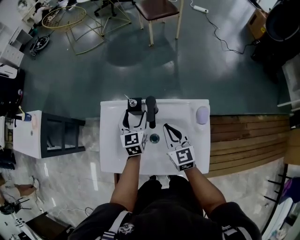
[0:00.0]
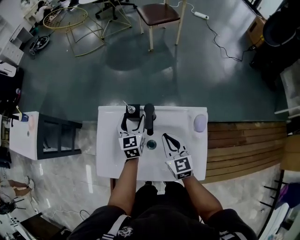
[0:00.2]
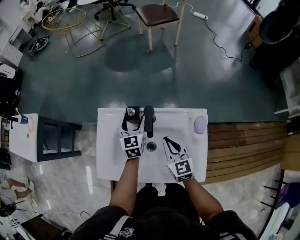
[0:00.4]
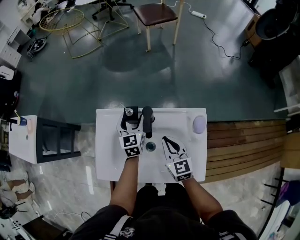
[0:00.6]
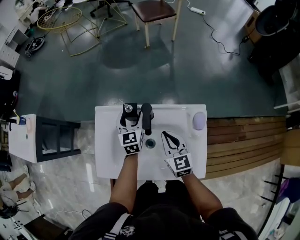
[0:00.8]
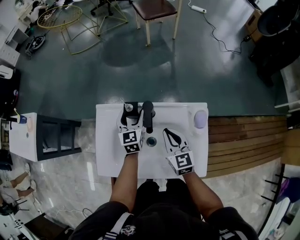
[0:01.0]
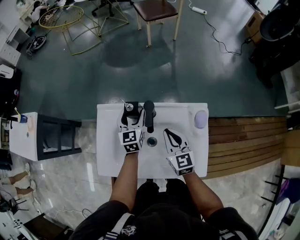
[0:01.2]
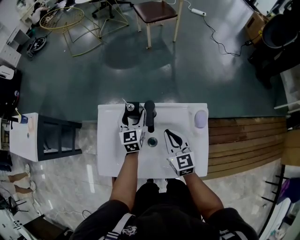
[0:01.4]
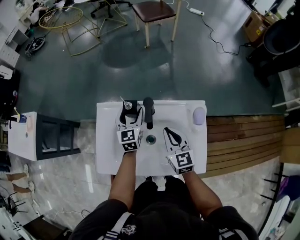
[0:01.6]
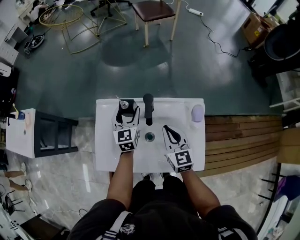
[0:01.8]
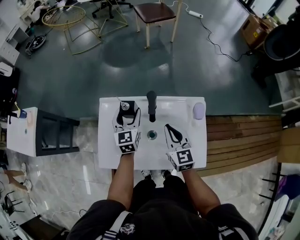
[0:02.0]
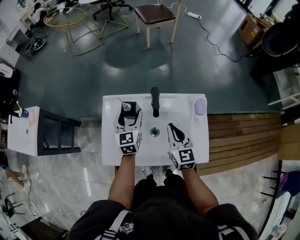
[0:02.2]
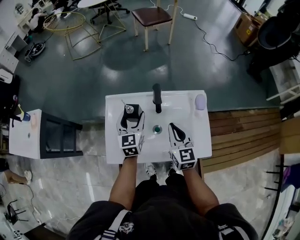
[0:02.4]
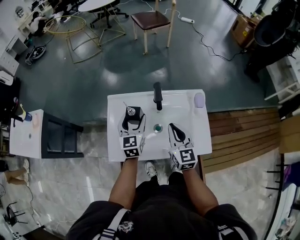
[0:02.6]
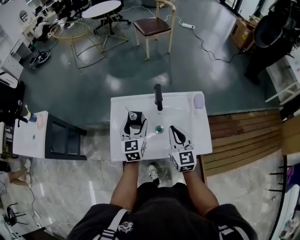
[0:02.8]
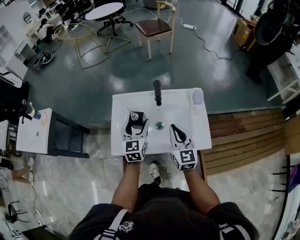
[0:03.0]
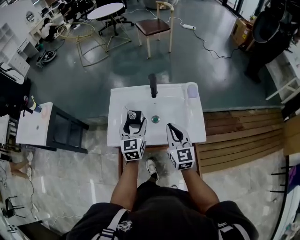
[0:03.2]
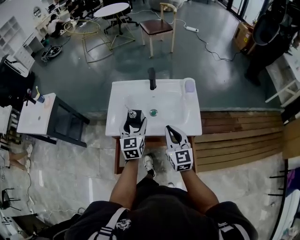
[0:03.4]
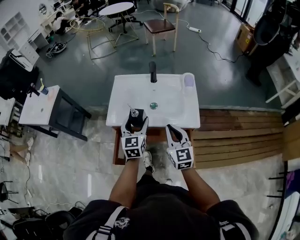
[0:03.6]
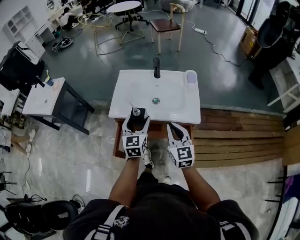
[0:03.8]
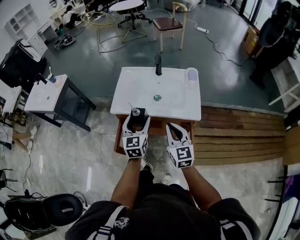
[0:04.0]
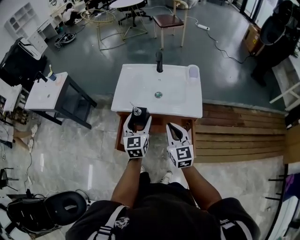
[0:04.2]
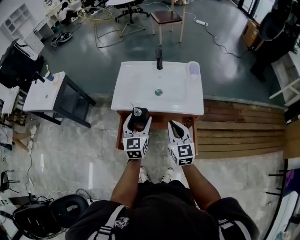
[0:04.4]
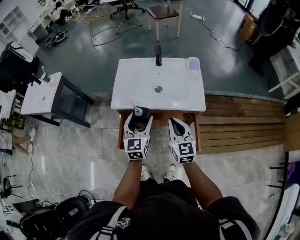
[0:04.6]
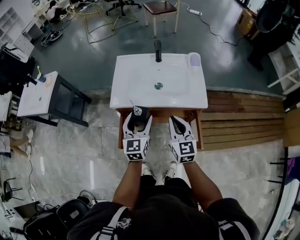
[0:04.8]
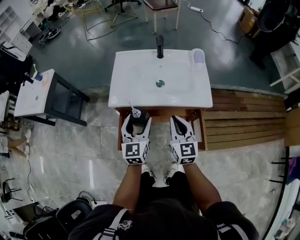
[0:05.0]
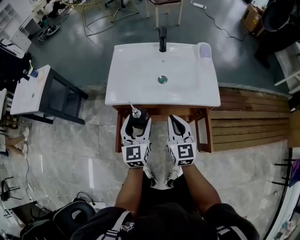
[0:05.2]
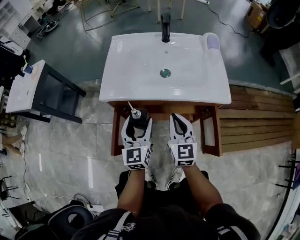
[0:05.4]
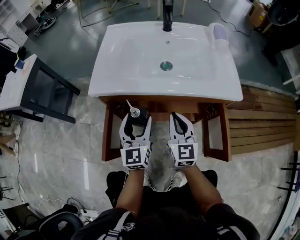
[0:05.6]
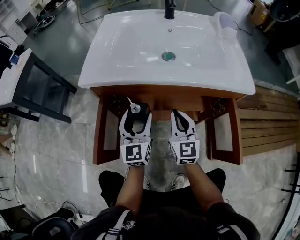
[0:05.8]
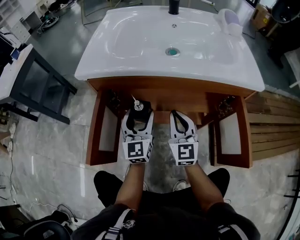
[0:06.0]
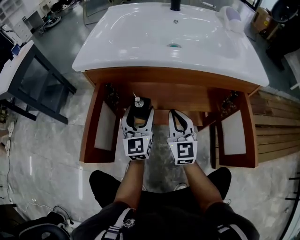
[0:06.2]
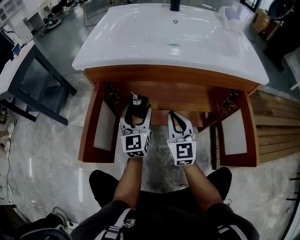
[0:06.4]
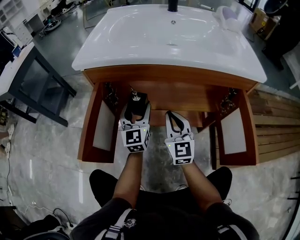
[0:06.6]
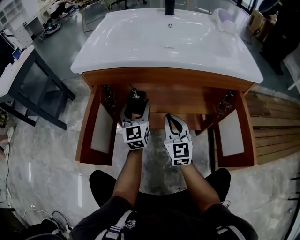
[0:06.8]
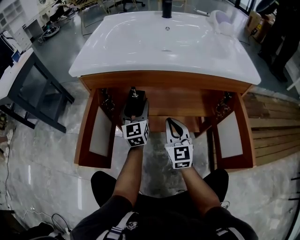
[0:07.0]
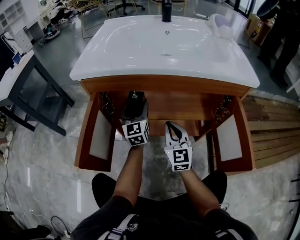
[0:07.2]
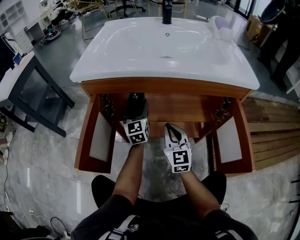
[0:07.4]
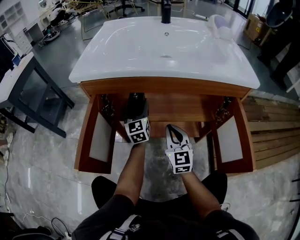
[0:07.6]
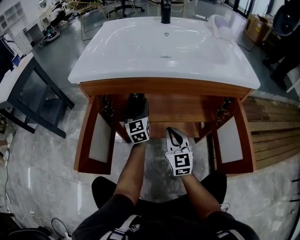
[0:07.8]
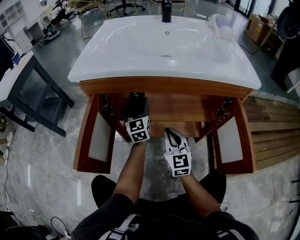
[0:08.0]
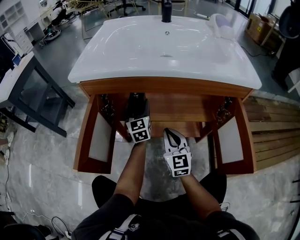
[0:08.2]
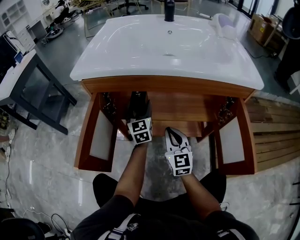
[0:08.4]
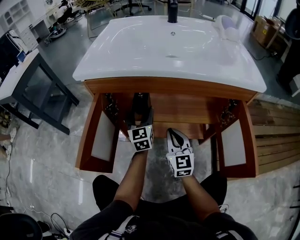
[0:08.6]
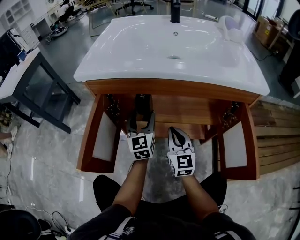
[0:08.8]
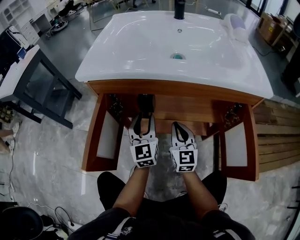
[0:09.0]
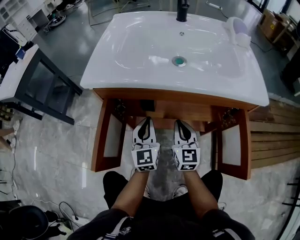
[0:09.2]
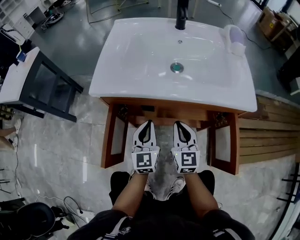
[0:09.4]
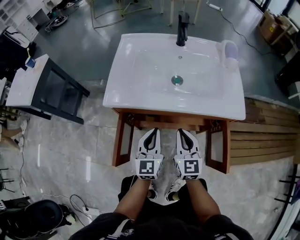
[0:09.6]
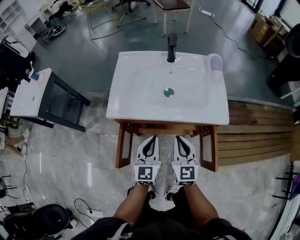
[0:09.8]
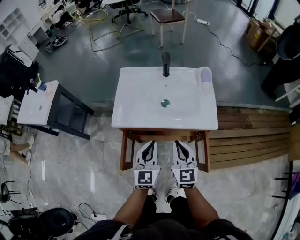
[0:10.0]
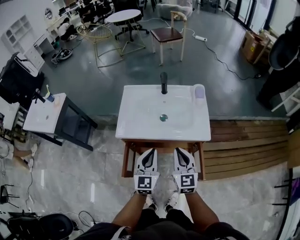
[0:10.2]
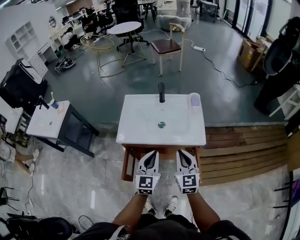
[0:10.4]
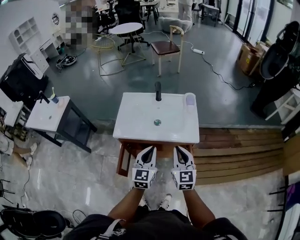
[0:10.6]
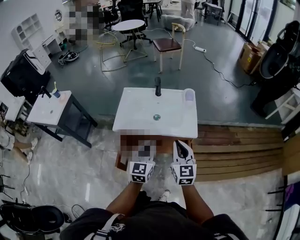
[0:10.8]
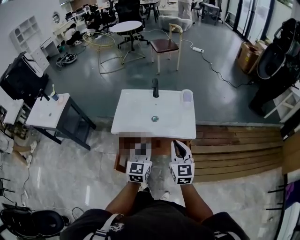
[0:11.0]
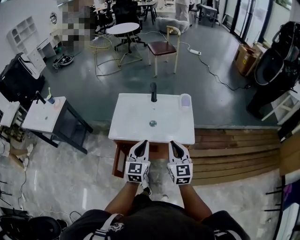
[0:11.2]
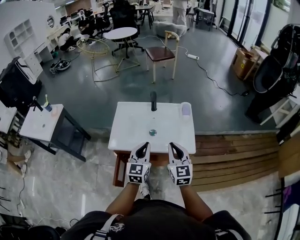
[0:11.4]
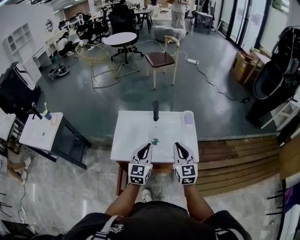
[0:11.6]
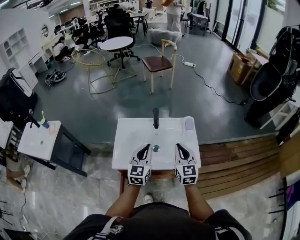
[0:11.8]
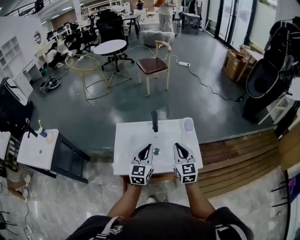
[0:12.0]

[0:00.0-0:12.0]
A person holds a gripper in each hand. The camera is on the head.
0:00.0 to 0:01.6: There are only small adjustments of the grippers.
0:01.6 to 0:03.0: The right gripper travels backward and upward by some 15 cm, while the left gripper heads backward, covering about 20 cm.
0:03.0 to 0:04.4: Both grippers move backward, roughly 25 cm.
0:04.4 to 0:06.0: The grippers both shift downward by about 40 cm.
0:06.0 to 0:07.6: The right gripper heads downward, covering approximately 10 cm; the left gripper moves forward and downward, approximately 15 cm.
0:07.6 to 0:09.0: The left gripper is displaced backward by about 10 cm, and closes.
0:09.0 to 0:10.4: The grippers both shift upward by approximately 50 cm. The left gripper closes.
0:10.4 to 0:12.0: The grippers both shift forward by approximately 20 cm.

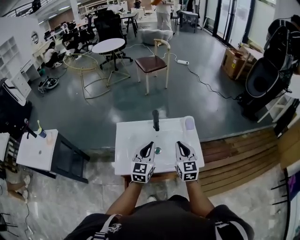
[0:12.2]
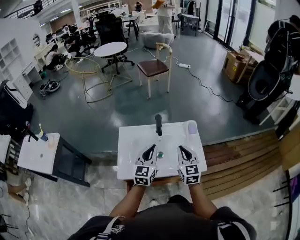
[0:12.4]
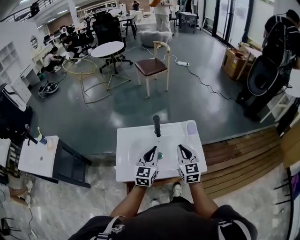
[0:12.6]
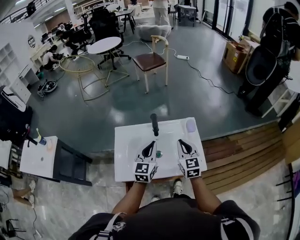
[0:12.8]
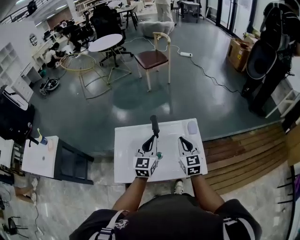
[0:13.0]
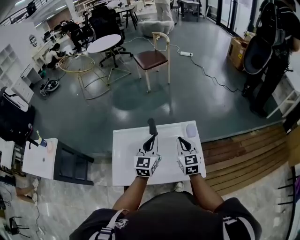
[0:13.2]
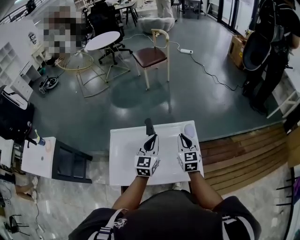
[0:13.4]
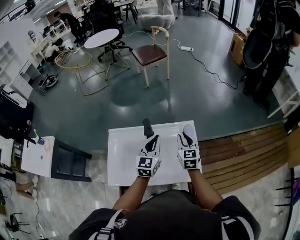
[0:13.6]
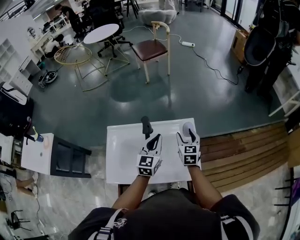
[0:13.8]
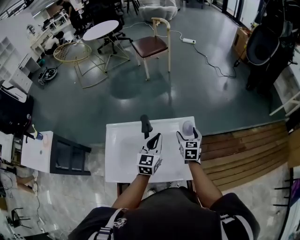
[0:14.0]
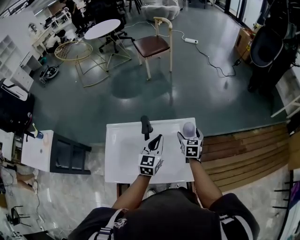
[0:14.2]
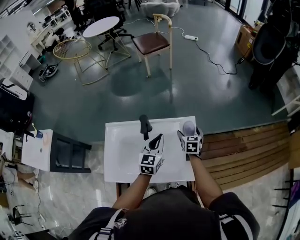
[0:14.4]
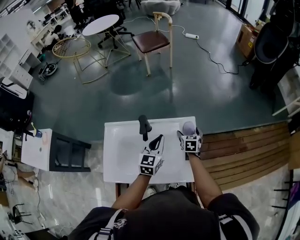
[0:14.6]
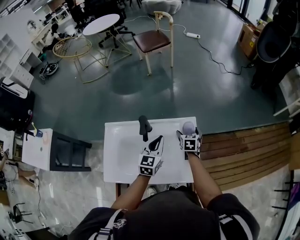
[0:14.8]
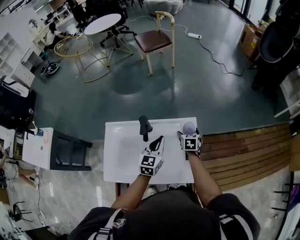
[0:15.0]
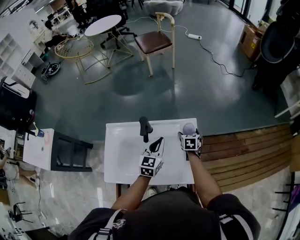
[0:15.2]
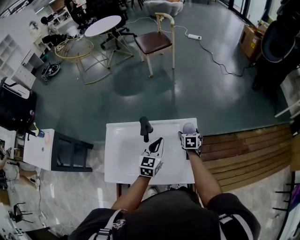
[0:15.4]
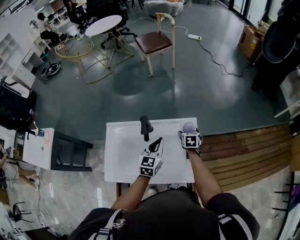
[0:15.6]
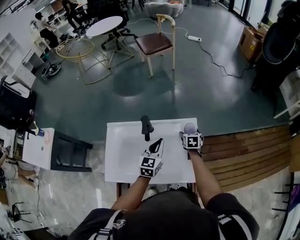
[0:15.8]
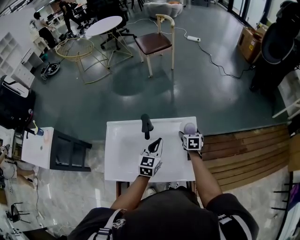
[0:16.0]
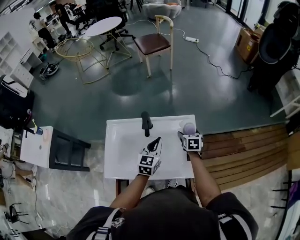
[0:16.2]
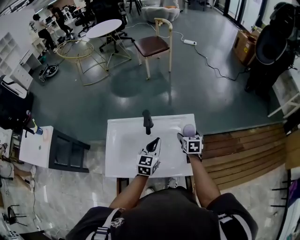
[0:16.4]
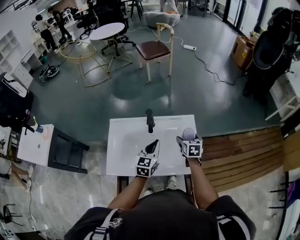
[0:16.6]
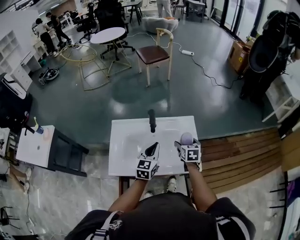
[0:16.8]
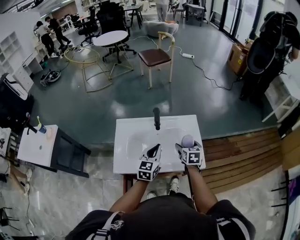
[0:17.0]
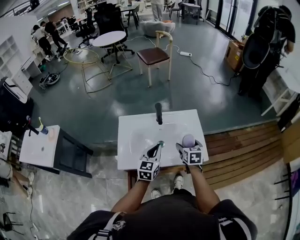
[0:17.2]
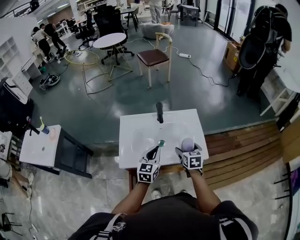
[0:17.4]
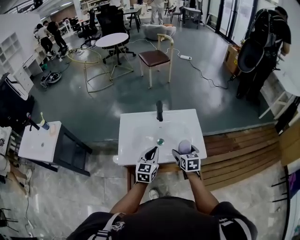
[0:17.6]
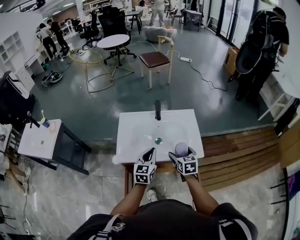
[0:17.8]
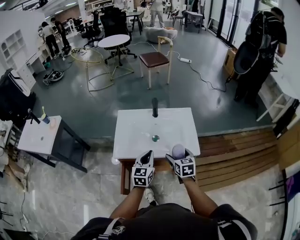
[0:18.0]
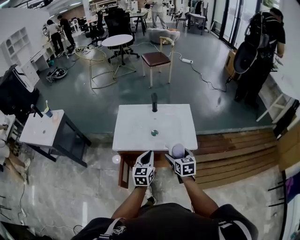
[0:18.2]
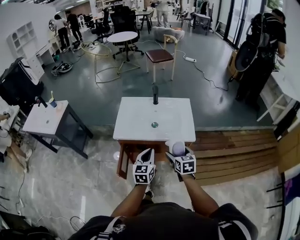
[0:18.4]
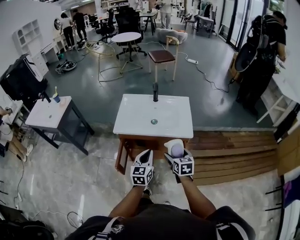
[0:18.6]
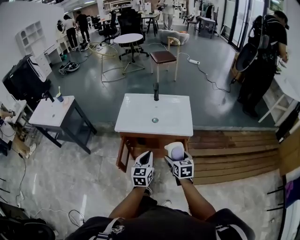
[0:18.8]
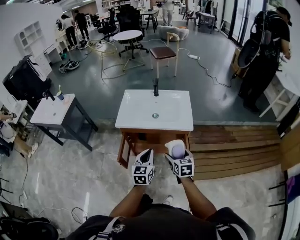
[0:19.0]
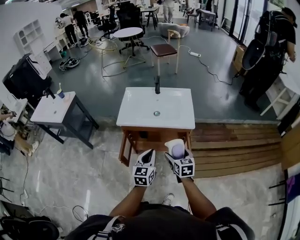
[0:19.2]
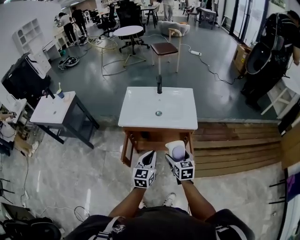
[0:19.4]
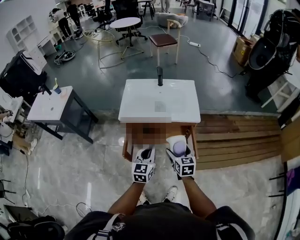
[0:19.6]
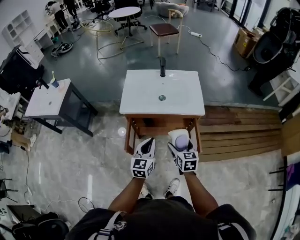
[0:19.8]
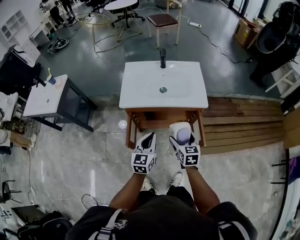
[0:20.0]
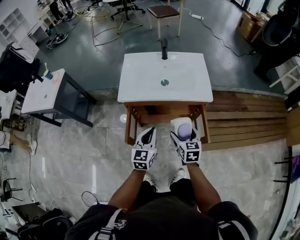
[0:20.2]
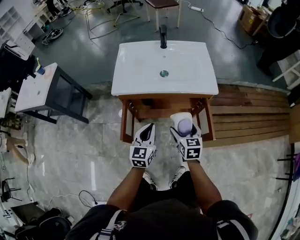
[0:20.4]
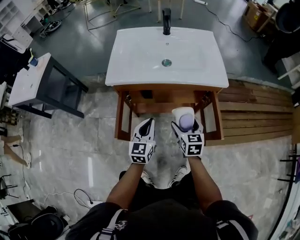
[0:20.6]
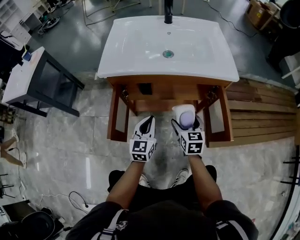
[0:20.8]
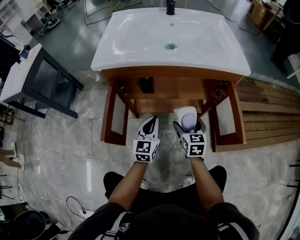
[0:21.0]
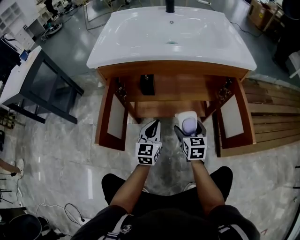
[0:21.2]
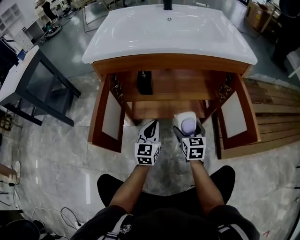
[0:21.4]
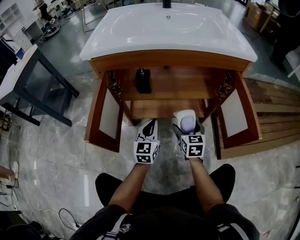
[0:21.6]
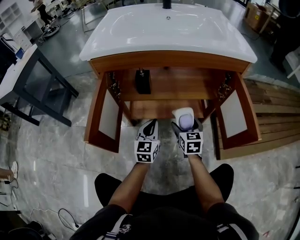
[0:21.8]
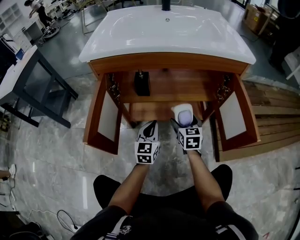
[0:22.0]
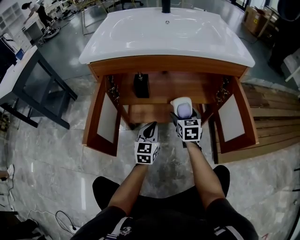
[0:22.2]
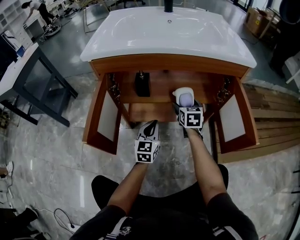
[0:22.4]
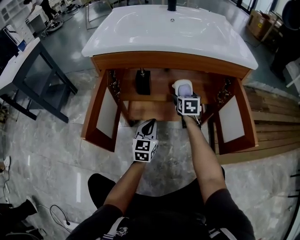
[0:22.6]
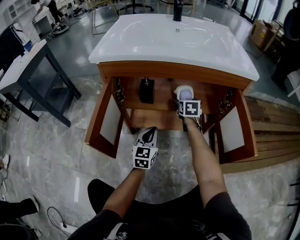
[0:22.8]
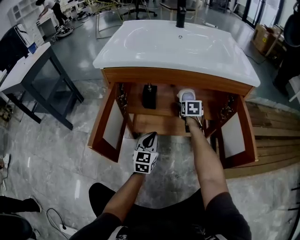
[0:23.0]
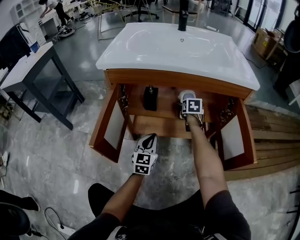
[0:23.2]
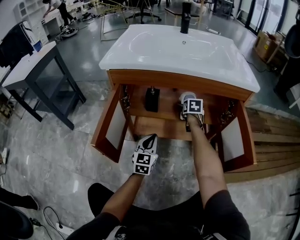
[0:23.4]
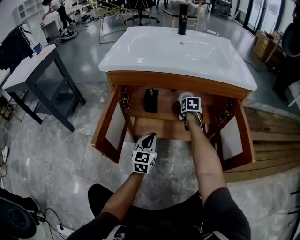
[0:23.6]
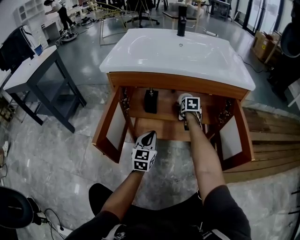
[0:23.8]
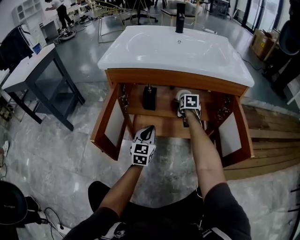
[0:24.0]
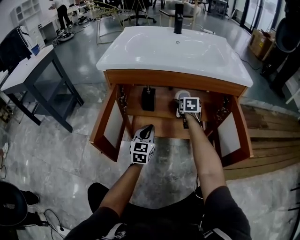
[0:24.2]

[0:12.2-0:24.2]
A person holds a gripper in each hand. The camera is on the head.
0:12.2 to 0:13.8: The right gripper goes approximately 25 cm forward, downward and to the right, and opens. The left gripper is displaced forward and to the right by some 20 cm.
0:13.8 to 0:15.2: The right gripper is displaced downward and forward by roughly 15 cm, rotates approximately 20 degrees, and opens up; the left gripper is displaced downward by approximately 5 cm.
0:15.2 to 0:16.6: The left gripper heads backward, covering some 10 cm. Meanwhile the right gripper moves backward and upward, about 15 cm.
0:16.6 to 0:18.2: Both grippers travel together backward, roughly 30 cm.
0:18.2 to 0:19.8: The grippers both shift backward by about 15 cm.
0:19.8 to 0:21.2: Both grippers travel together downward, approximately 50 cm.
0:21.2 to 0:22.6: The left gripper goes about 5 cm downward, while the right gripper heads forward, covering about 20 cm.
0:22.6 to 0:24.2: The right gripper goes some 5 cm forward.
